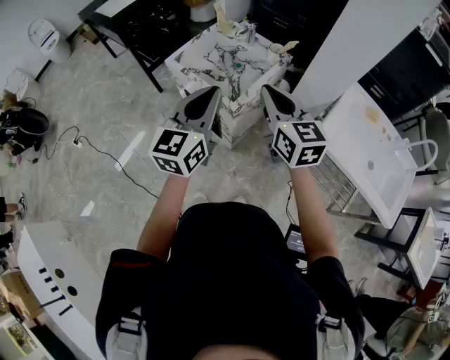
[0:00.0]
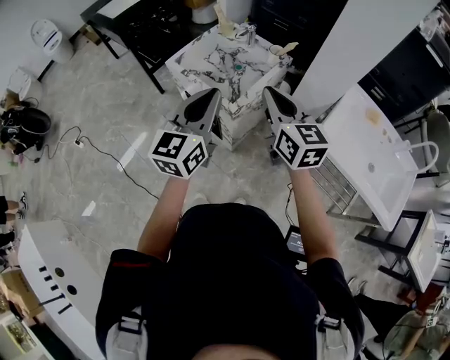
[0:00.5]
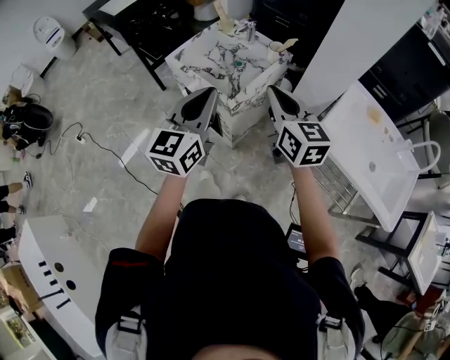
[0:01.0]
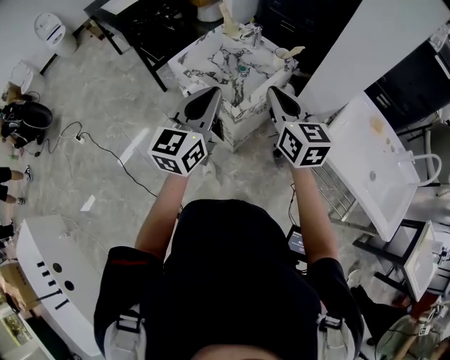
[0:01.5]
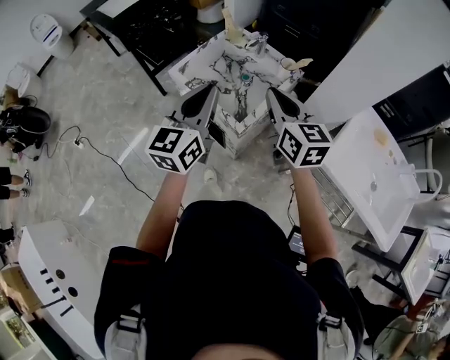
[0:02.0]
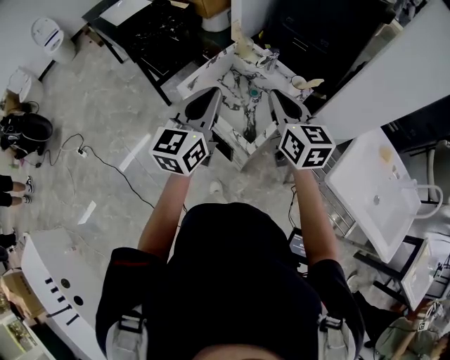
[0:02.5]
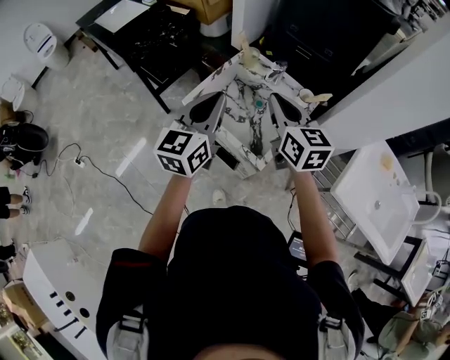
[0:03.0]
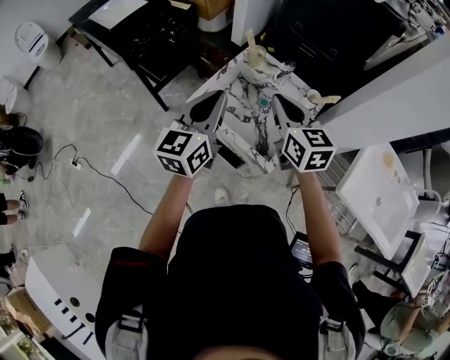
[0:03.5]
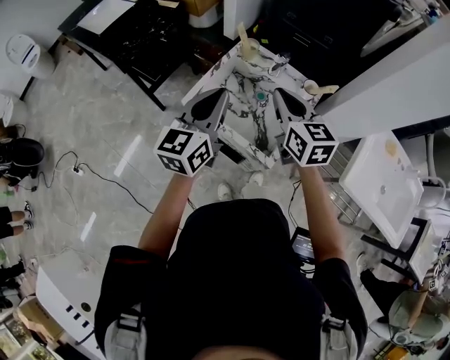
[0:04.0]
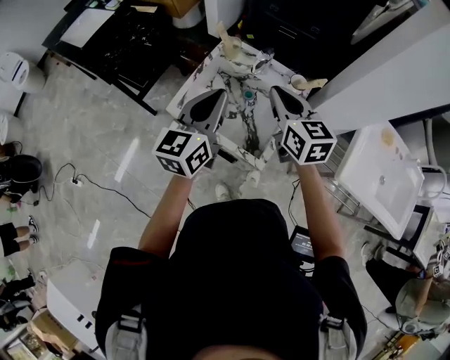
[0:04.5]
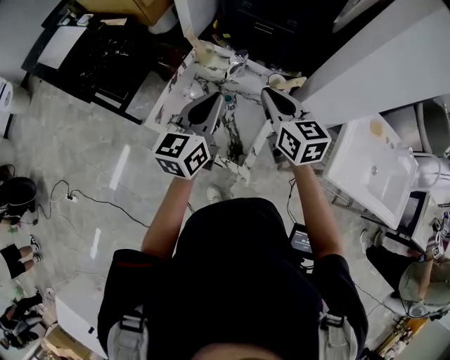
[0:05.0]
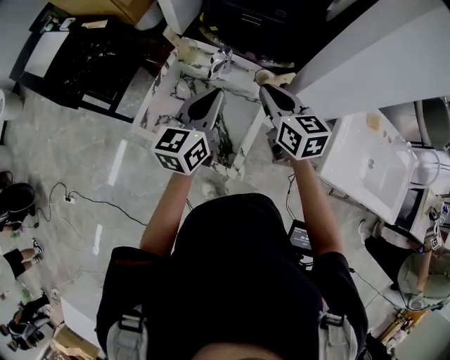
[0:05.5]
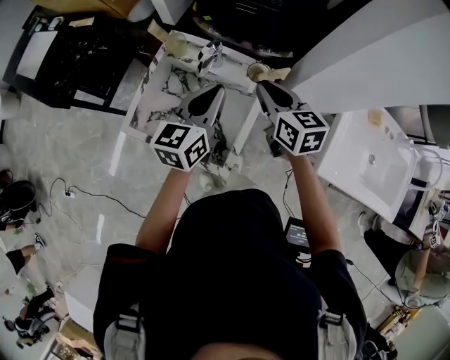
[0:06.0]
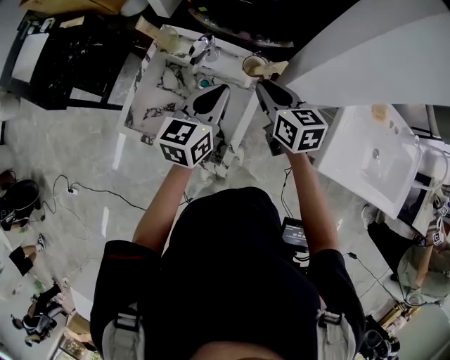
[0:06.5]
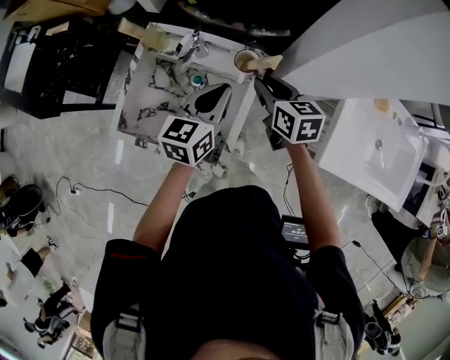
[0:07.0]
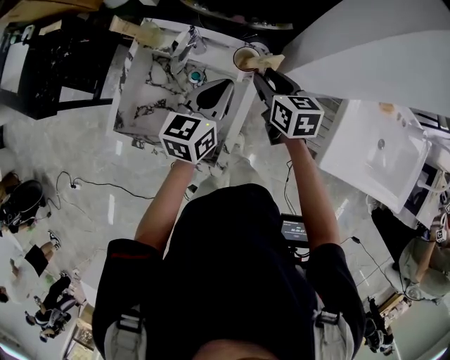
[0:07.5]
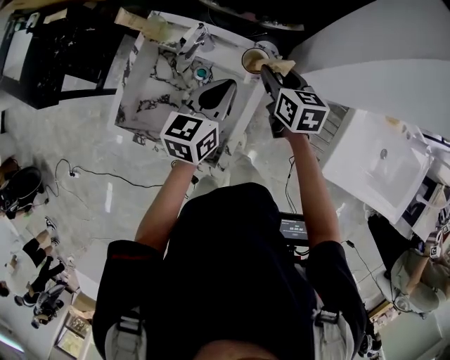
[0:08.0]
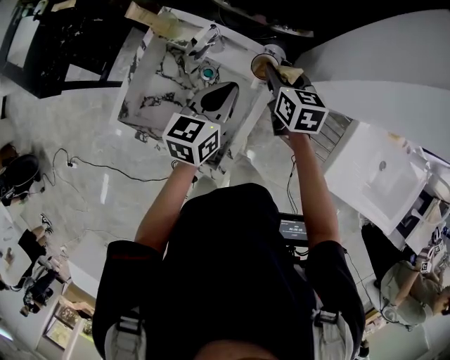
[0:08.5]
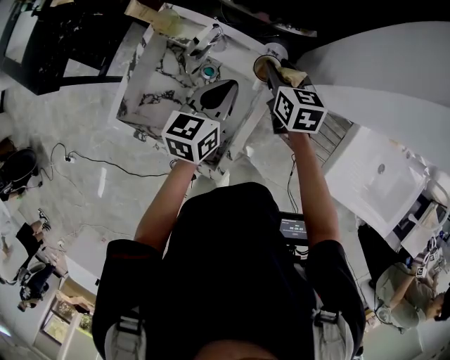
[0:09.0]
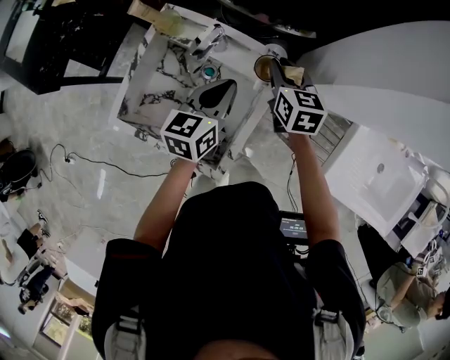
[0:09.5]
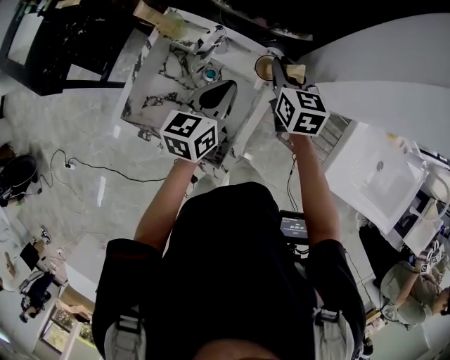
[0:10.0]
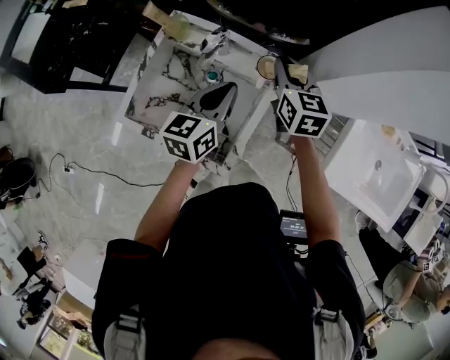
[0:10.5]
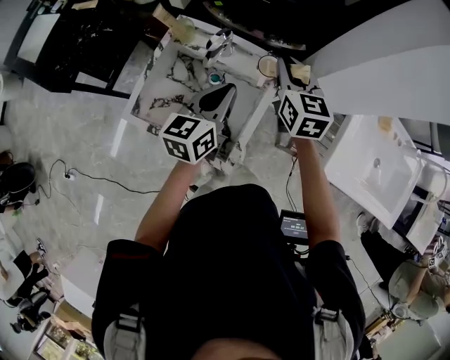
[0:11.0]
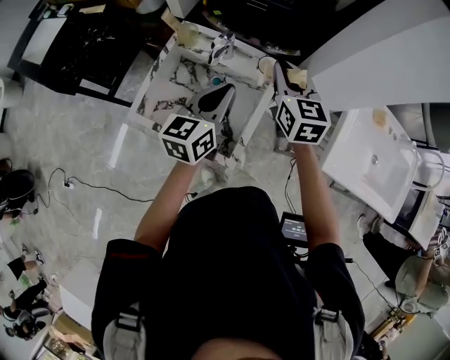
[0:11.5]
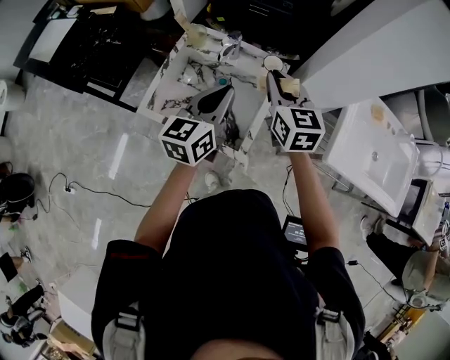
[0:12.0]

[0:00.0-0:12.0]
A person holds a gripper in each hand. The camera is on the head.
0:00.0 to 0:02.0: Both grippers move forward, about 10 cm.
0:02.0 to 0:04.0: The grippers both shift forward and to the left by about 20 cm.
0:04.0 to 0:06.0: Both grippers travel together to the right, forward and downward, some 25 cm.
0:06.0 to 0:08.0: The right gripper moves downward and forward, approximately 15 cm, and opens up. The left gripper goes about 10 cm downward and to the right.
0:08.0 to 0:10.0: The right gripper moves about 5 cm.
0:10.0 to 0:12.0: The two grippers go roughly 20 cm backward and upward.

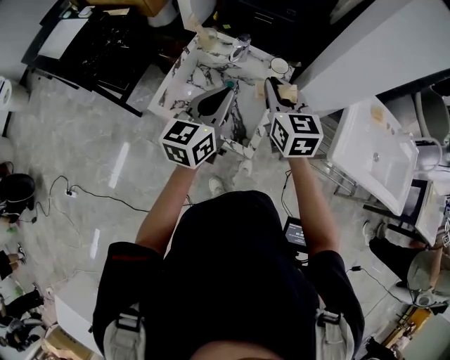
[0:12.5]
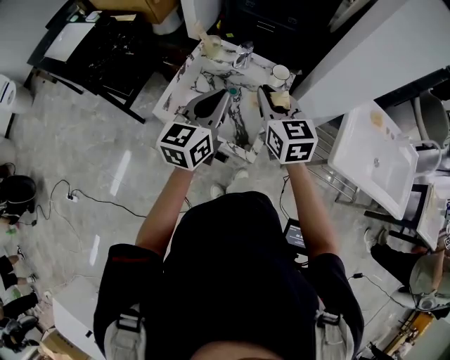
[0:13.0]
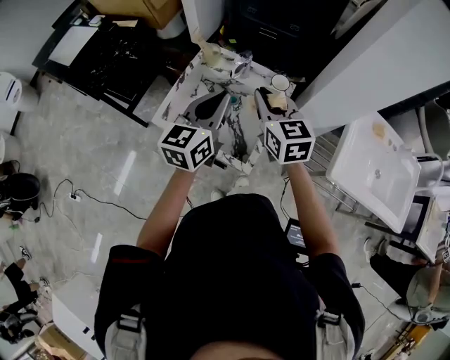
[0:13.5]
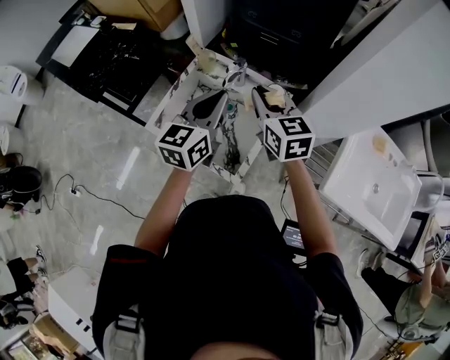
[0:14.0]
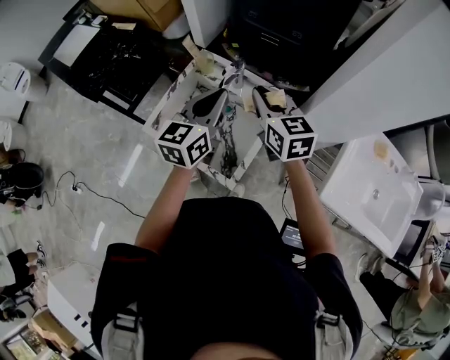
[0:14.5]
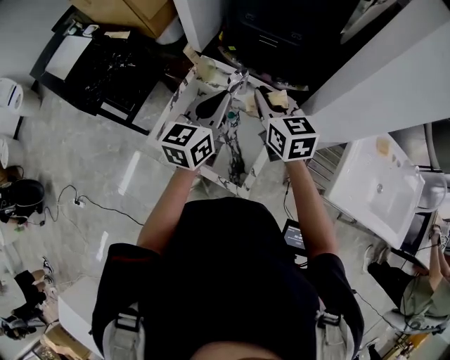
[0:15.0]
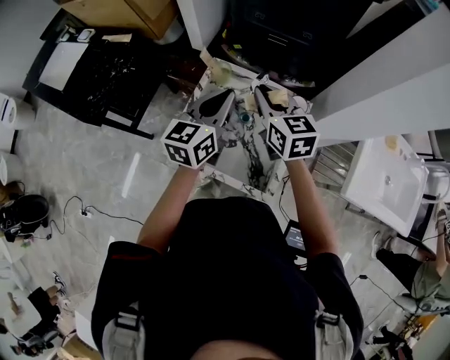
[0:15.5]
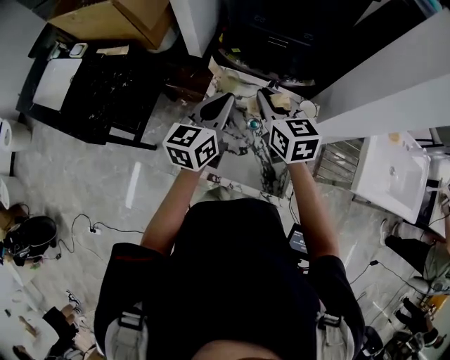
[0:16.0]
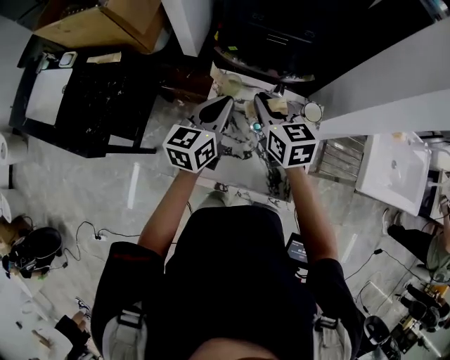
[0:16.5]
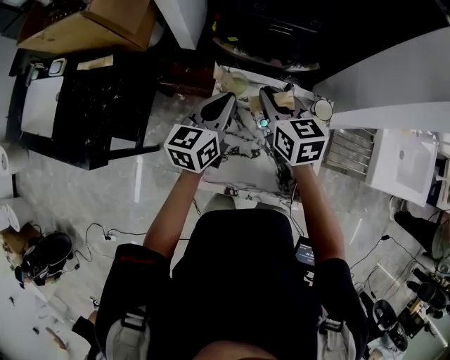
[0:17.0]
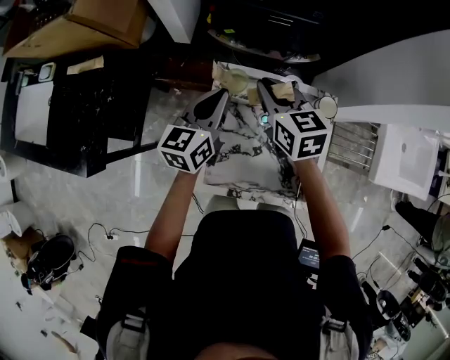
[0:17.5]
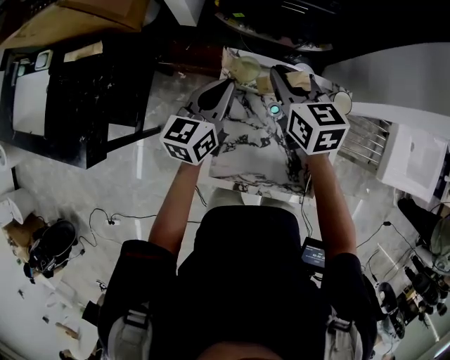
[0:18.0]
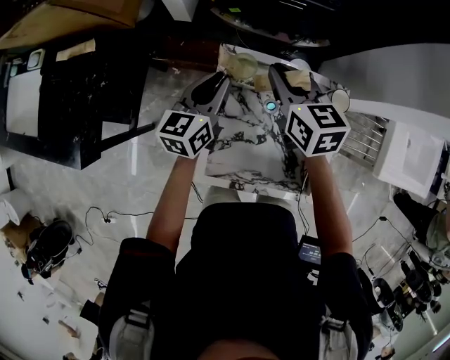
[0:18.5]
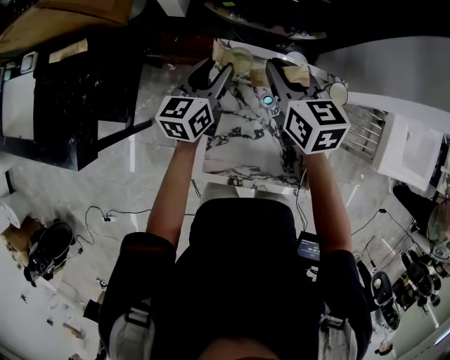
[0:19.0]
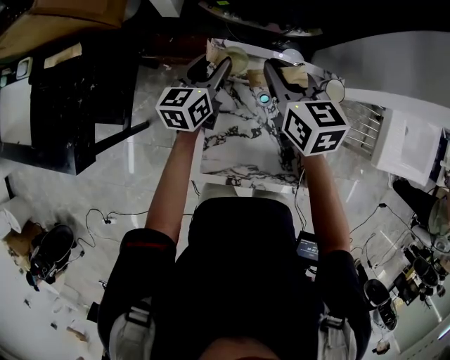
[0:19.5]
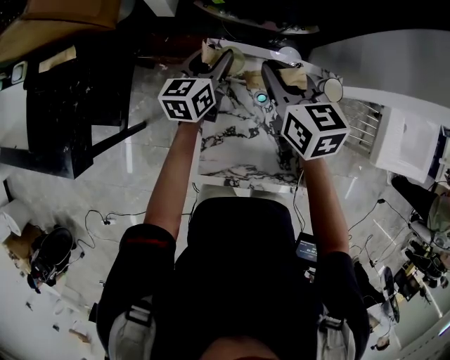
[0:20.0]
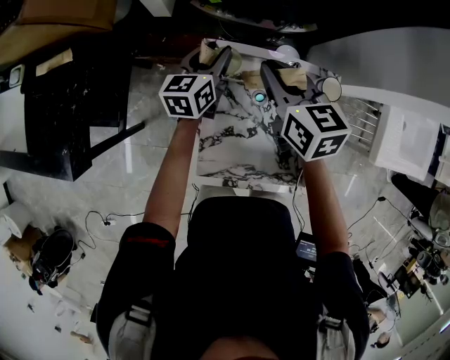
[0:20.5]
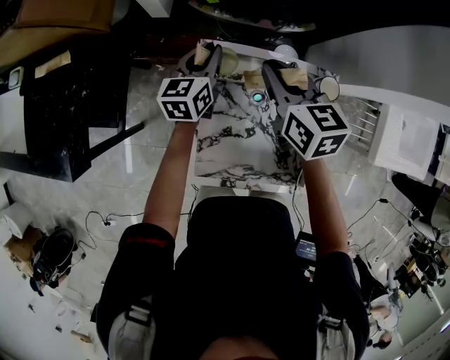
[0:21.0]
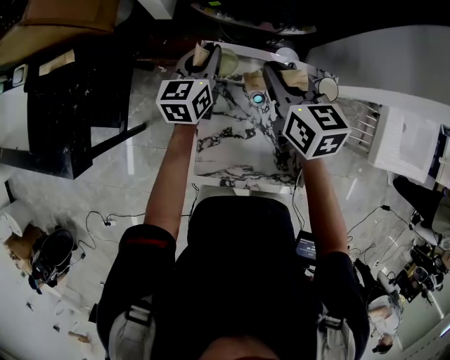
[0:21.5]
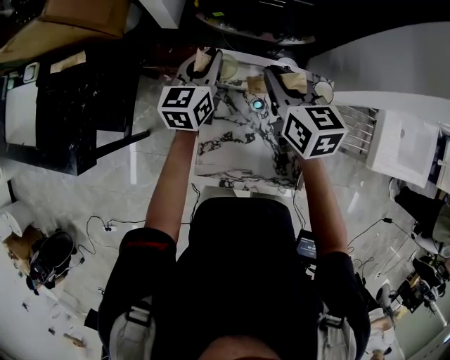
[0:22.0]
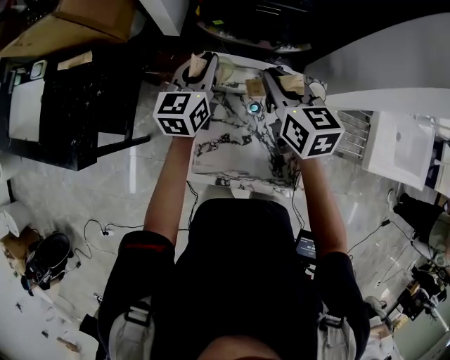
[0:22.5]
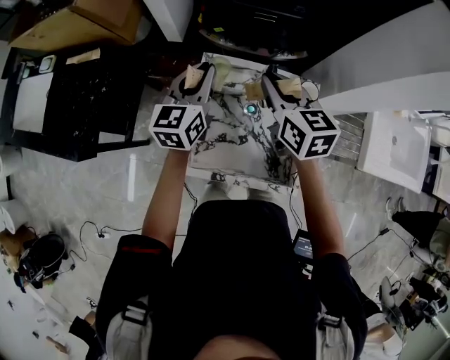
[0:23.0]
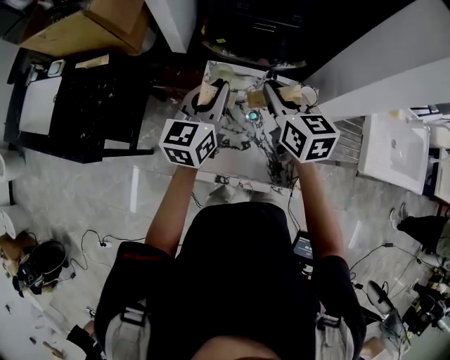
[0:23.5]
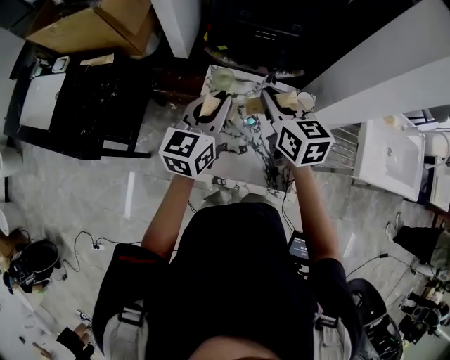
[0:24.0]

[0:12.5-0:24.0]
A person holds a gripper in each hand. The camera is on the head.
0:12.5 to 0:14.5: Both grippers move forward, roughly 10 cm.
0:14.5 to 0:16.5: Both grippers travel together to the left and forward, roughly 20 cm.
0:16.5 to 0:18.5: The left gripper heads downward, forward and to the left, covering approximately 15 cm. Meanwhile the right gripper heads forward and downward, covering some 10 cm.
0:18.5 to 0:20.0: The left gripper is displaced forward by some 5 cm, and opens its fingers.
0:20.0 to 0:22.0: The left gripper moves upward, roughly 5 cm, and closes up.
0:22.0 to 0:24.0: The left gripper shifts about 20 cm backward and upward, while the right gripper shifts about 10 cm backward and upward.

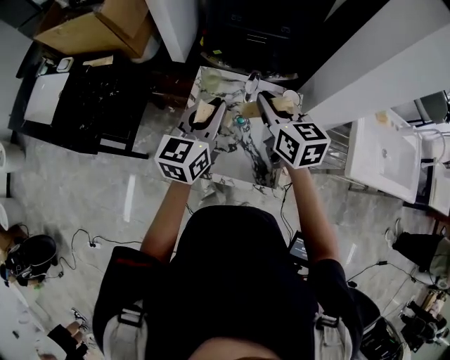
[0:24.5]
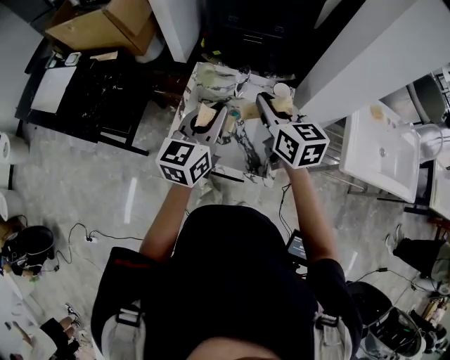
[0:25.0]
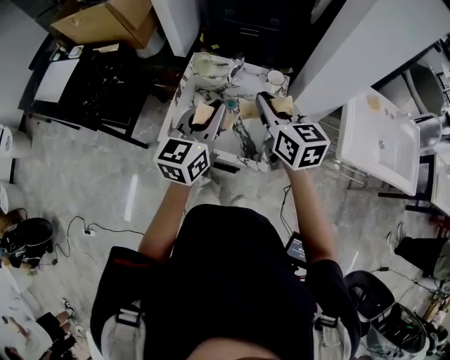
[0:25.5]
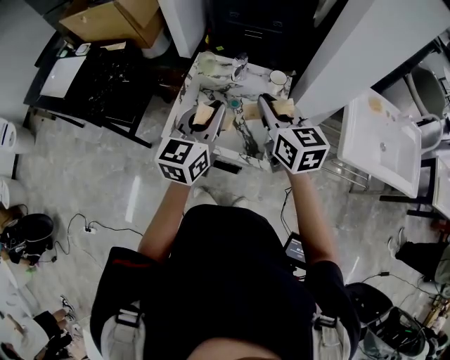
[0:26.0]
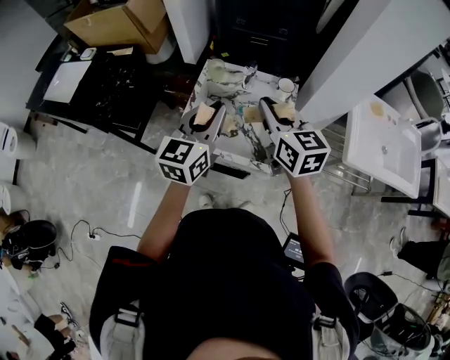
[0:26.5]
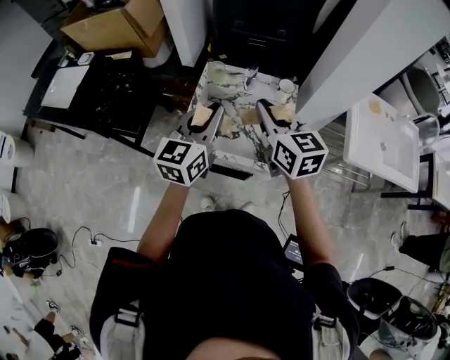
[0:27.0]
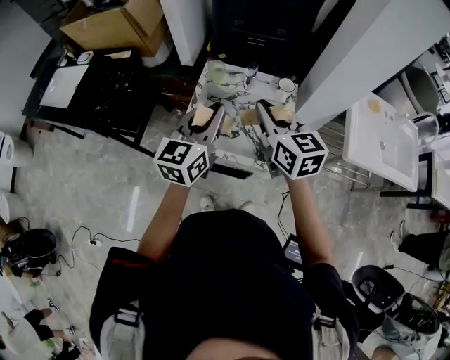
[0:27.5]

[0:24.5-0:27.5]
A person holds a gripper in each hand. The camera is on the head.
0:24.5 to 0:26.0: The right gripper moves backward and to the right, roughly 15 cm, while the left gripper heads backward, covering approximately 15 cm.
0:26.0 to 0:27.5: Both grippers travel together to the left, roughly 5 cm.
